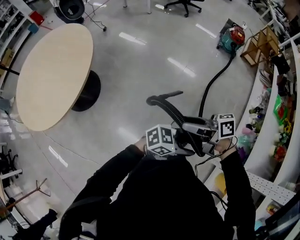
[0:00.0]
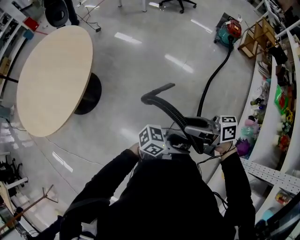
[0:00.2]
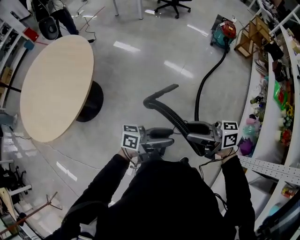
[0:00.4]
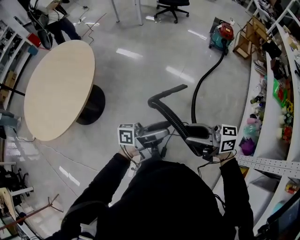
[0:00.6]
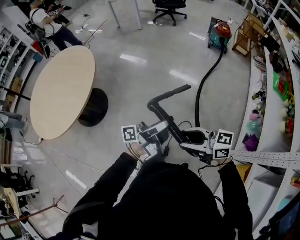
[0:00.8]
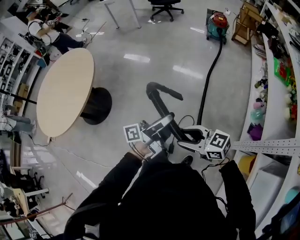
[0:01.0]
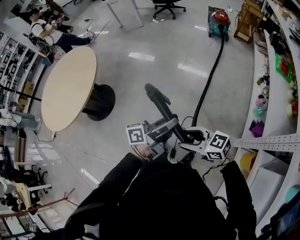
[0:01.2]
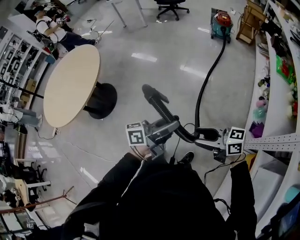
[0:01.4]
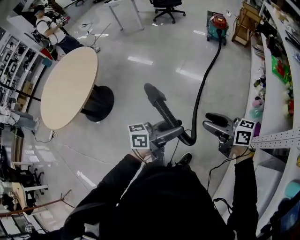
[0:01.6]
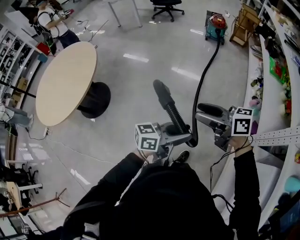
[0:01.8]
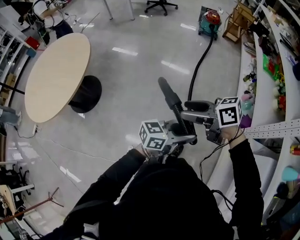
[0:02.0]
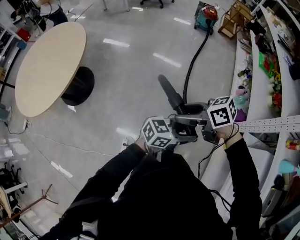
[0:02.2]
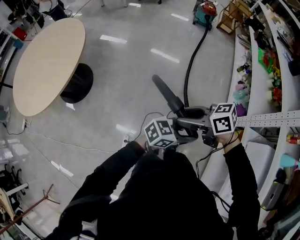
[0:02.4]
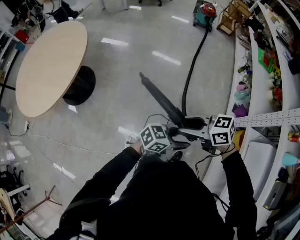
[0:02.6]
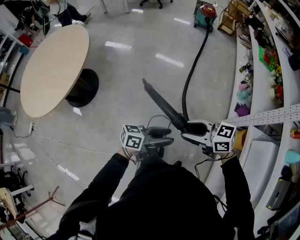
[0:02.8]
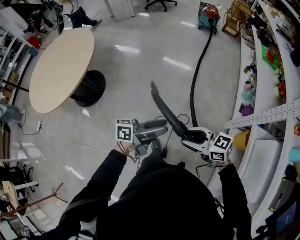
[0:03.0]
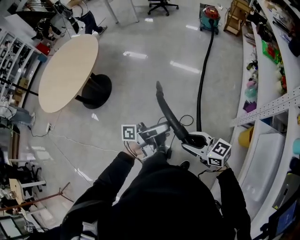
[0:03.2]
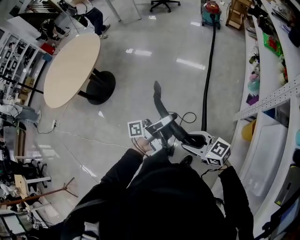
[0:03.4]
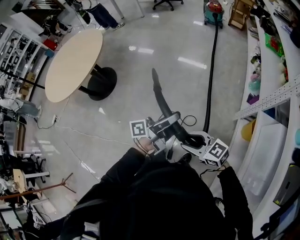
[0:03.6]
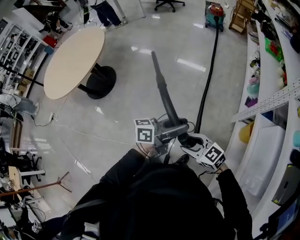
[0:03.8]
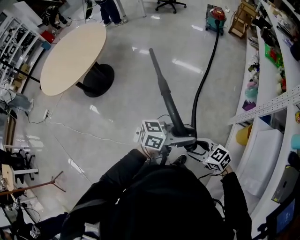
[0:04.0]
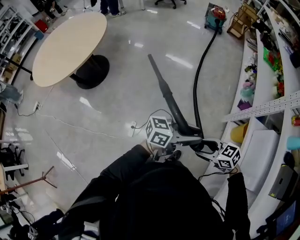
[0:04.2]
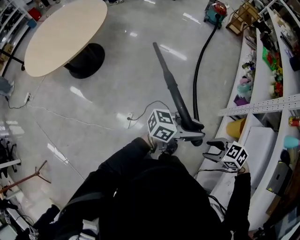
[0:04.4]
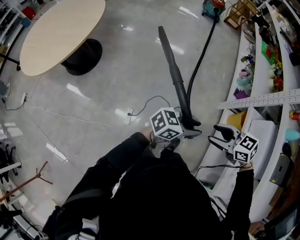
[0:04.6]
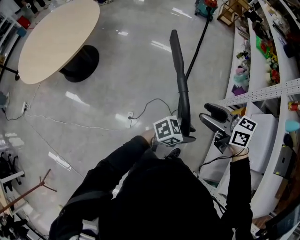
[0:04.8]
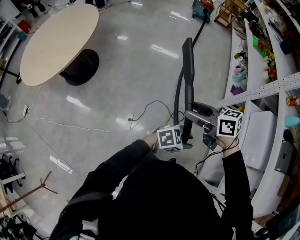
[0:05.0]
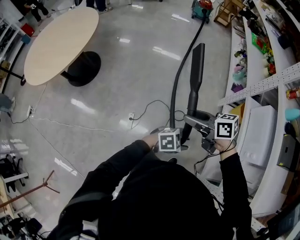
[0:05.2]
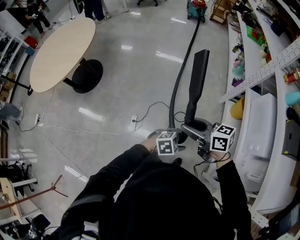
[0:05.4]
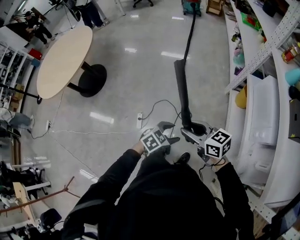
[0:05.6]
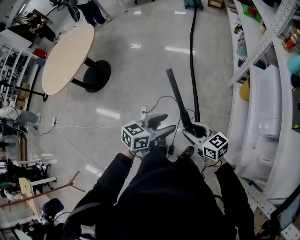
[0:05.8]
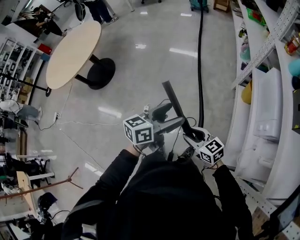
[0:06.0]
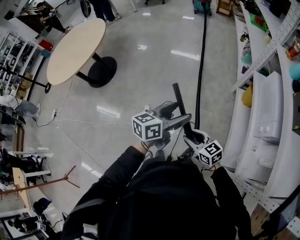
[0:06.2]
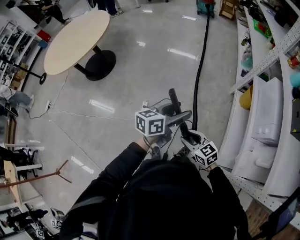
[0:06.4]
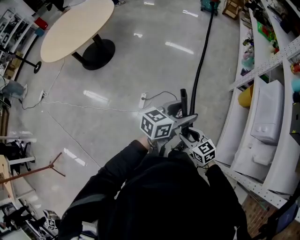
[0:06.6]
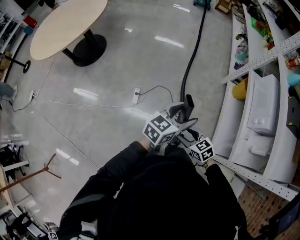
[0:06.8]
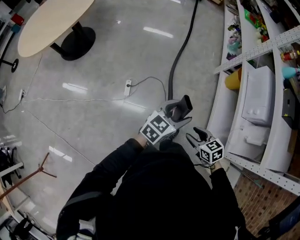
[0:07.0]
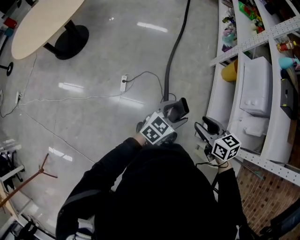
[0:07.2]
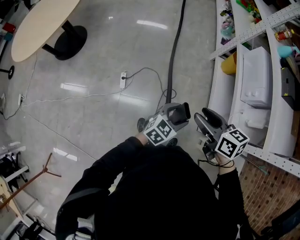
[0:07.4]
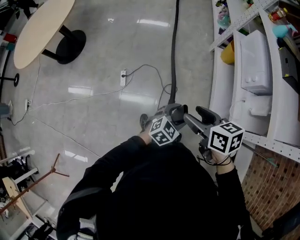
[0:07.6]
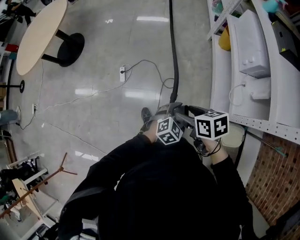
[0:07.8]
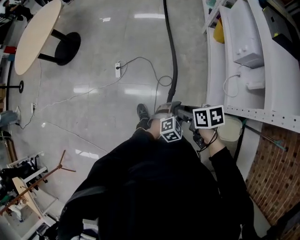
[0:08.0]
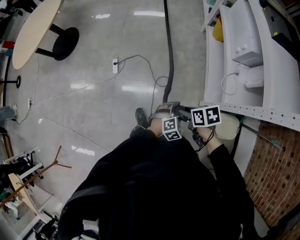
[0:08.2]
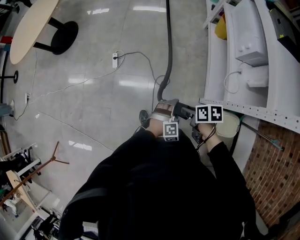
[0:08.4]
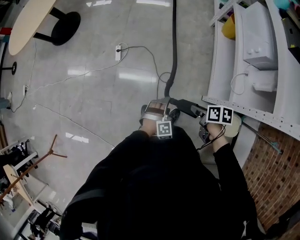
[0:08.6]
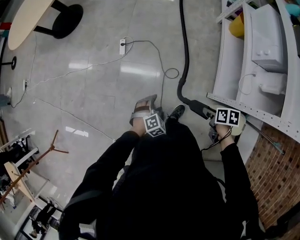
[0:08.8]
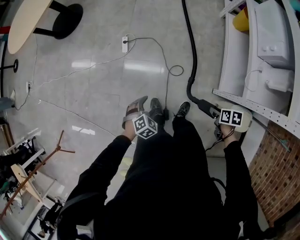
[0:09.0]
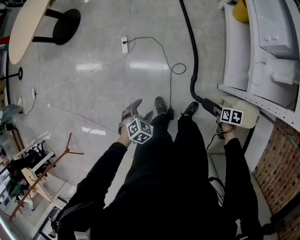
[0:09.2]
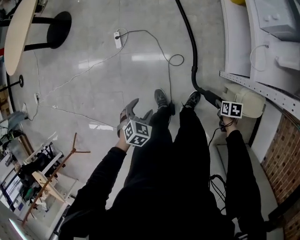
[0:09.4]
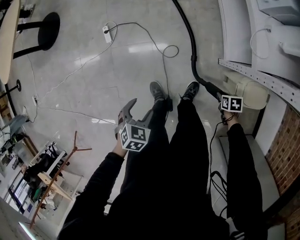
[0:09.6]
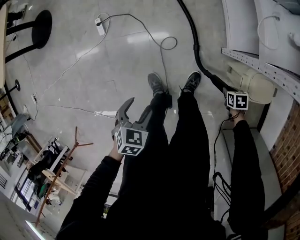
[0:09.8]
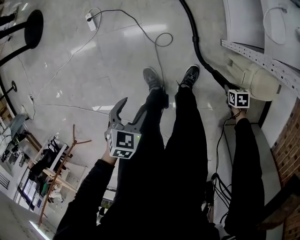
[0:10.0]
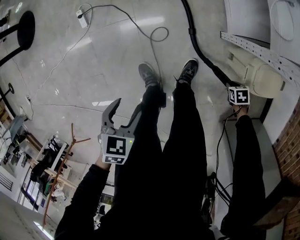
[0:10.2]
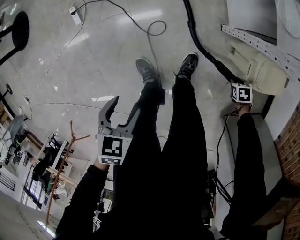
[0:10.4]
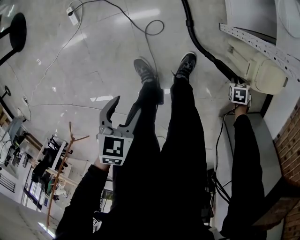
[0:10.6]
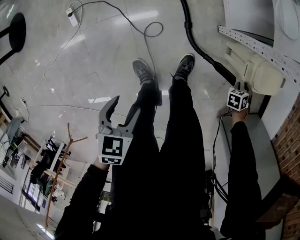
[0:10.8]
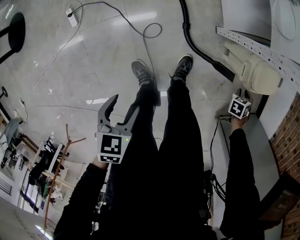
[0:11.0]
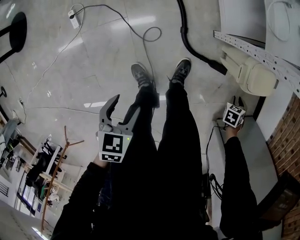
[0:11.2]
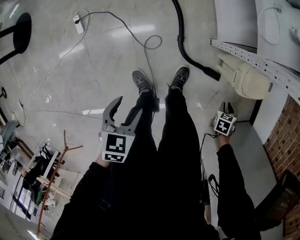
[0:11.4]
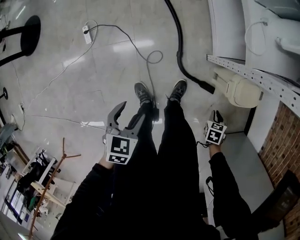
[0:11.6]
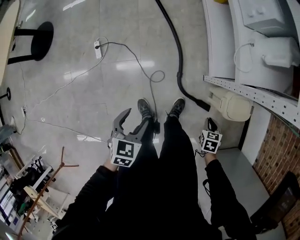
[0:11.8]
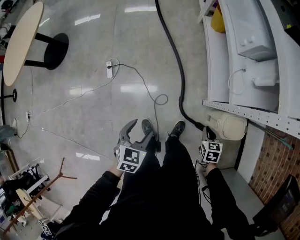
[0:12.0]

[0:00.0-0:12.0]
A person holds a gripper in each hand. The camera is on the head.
0:00.0 to 0:01.6: The left gripper shifts by roughly 20 cm, changes its angle by approximately 40 degrees, and opens, then closes once more, while the right gripper changes place by approximately 35 cm, and swivels about 30 degrees.
0:01.6 to 0:03.0: The right gripper moves roughly 30 cm, and swivels about 20 degrees; the left gripper shifts by approximately 20 cm.
0:03.0 to 0:04.4: The right gripper changes place by some 20 cm, and points its fingers about 40 degrees further downward. The left gripper ends up about 20 cm from where it was, and swivels approximately 30 degrees.
0:04.4 to 0:06.0: The right gripper moves roughly 15 cm upward and comes back, and tilts its fingers roughly 30 degrees upward. The left gripper travels downward and back again, approximately 15 cm each way, turns by roughly 30 degrees, and opens its fingers.
0:06.0 to 0:07.6: The left gripper shifts approximately 30 cm backward and downward, and swivels roughly 50 degrees. The right gripper heads backward and upward, covering about 20 cm, and changes its angle by approximately 30 degrees.
0:07.6 to 0:09.0: The right gripper is displaced downward by about 30 cm, points its fingers roughly 30 degrees further downward, and closes; the left gripper changes place by some 30 cm, and rotates roughly 30 degrees.
0:09.0 to 0:10.4: The right gripper shifts approximately 40 cm downward, and rotates approximately 20 degrees, while the left gripper ends up roughly 20 cm from where it was, and turns by approximately 20 degrees.
0:10.4 to 0:12.0: The right gripper heads upward, covering approximately 40 cm, and swivels roughly 40 degrees. The left gripper is displaced upward by some 20 cm, and turns by roughly 20 degrees.

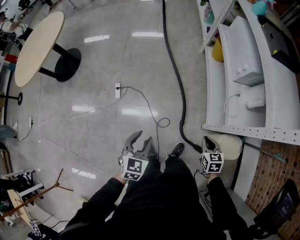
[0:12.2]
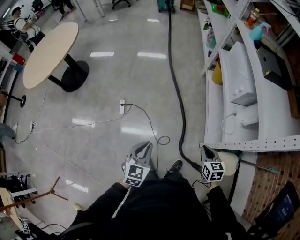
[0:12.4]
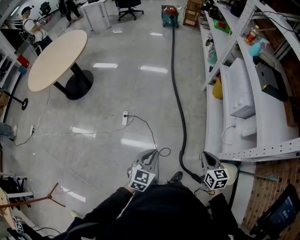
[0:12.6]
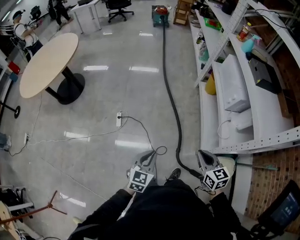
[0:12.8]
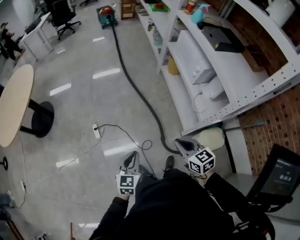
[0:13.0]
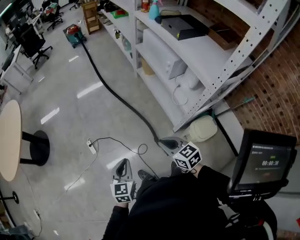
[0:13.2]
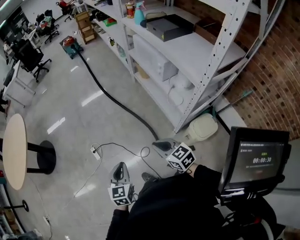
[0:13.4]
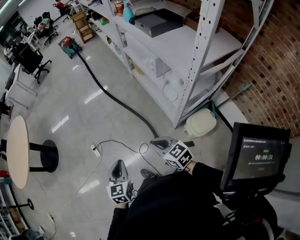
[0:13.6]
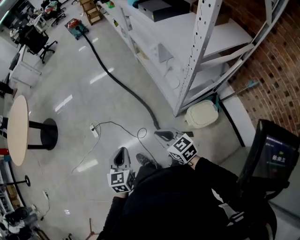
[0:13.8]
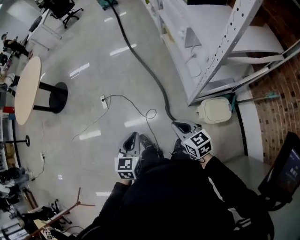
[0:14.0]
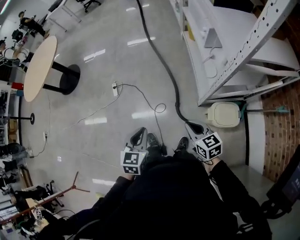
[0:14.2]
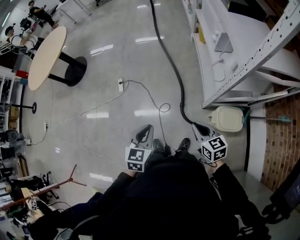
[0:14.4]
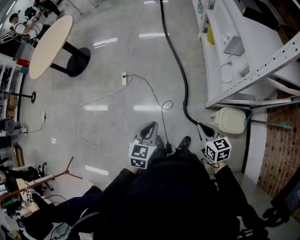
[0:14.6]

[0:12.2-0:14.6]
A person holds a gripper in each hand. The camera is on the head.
0:12.2 to 0:13.4: The left gripper moves upward, approximately 10 cm, and closes. Meanwhile the right gripper moves upward and to the left, approximately 20 cm, and turns by approximately 20 degrees.
0:13.4 to 0:14.6: The left gripper moves backward and to the right, some 15 cm. Meanwhile the right gripper goes about 20 cm backward, to the right and downward.

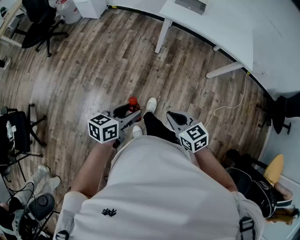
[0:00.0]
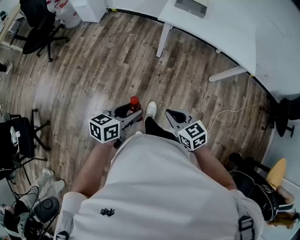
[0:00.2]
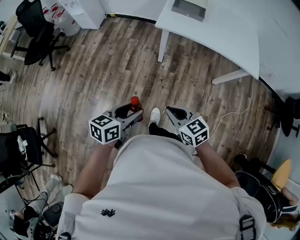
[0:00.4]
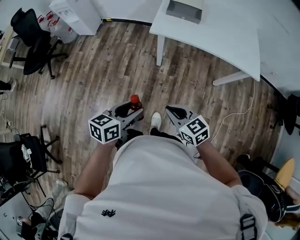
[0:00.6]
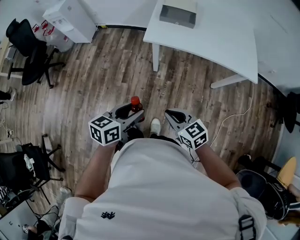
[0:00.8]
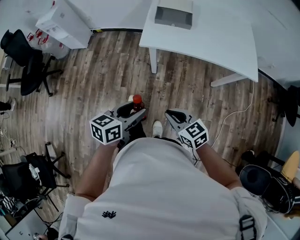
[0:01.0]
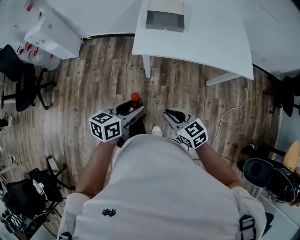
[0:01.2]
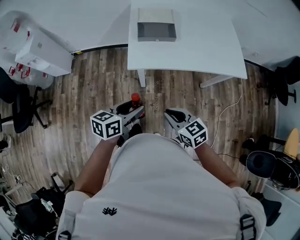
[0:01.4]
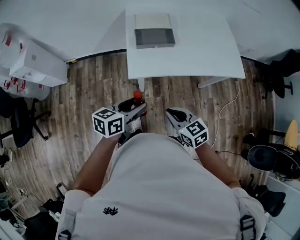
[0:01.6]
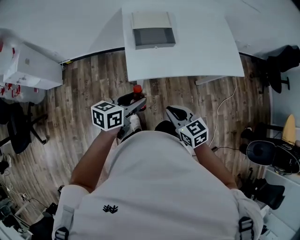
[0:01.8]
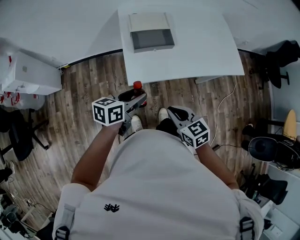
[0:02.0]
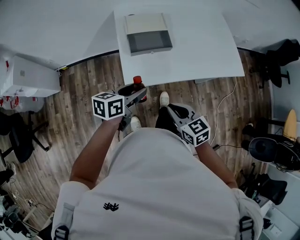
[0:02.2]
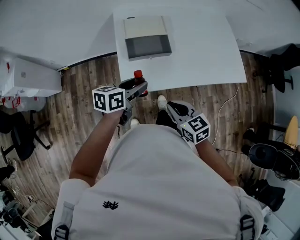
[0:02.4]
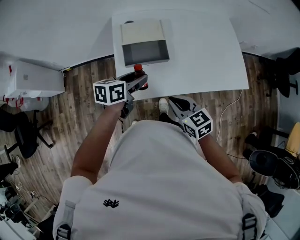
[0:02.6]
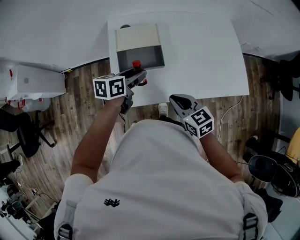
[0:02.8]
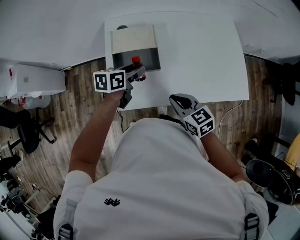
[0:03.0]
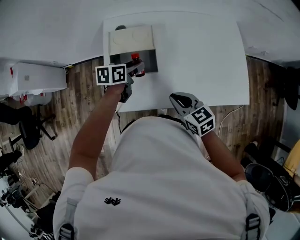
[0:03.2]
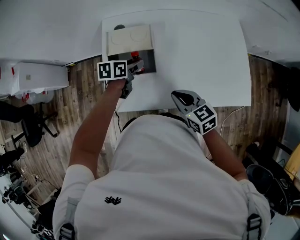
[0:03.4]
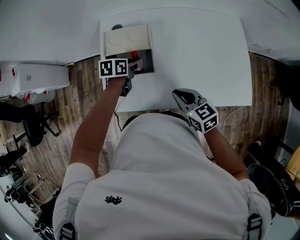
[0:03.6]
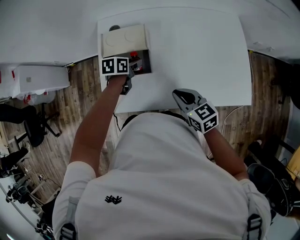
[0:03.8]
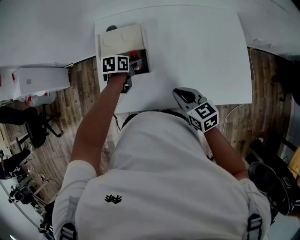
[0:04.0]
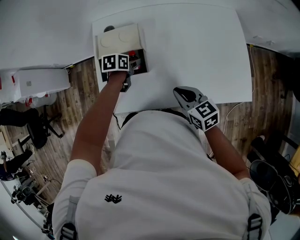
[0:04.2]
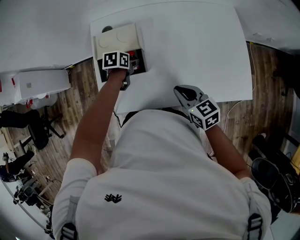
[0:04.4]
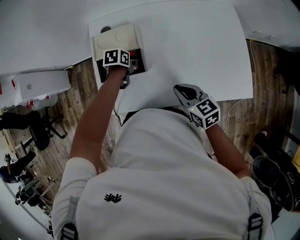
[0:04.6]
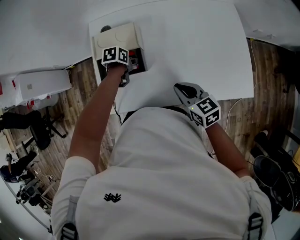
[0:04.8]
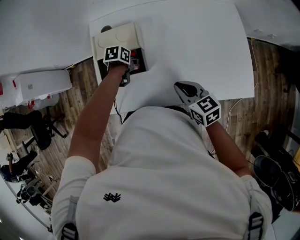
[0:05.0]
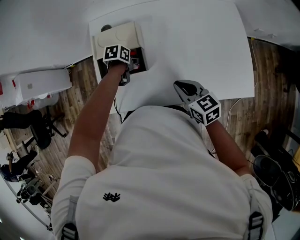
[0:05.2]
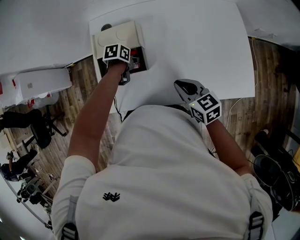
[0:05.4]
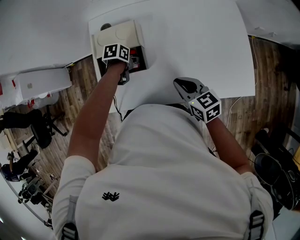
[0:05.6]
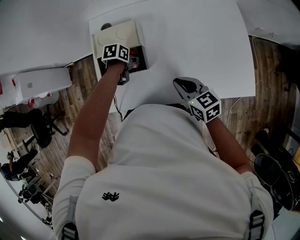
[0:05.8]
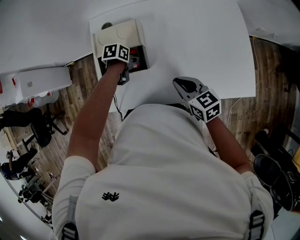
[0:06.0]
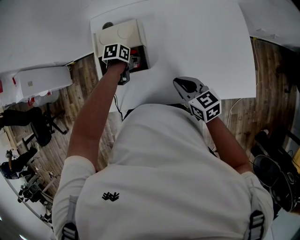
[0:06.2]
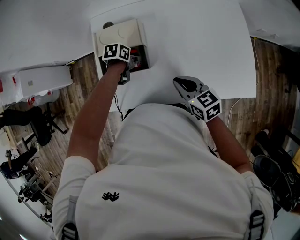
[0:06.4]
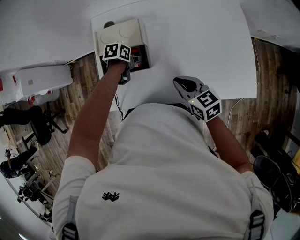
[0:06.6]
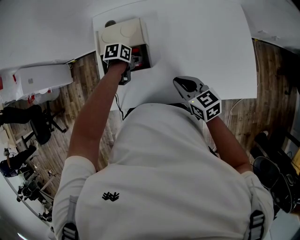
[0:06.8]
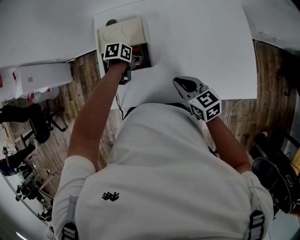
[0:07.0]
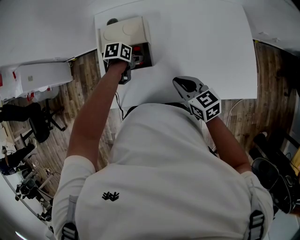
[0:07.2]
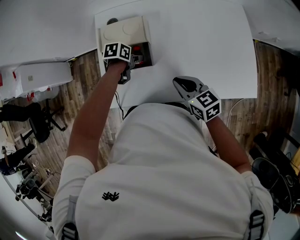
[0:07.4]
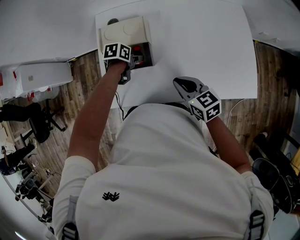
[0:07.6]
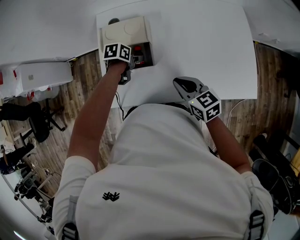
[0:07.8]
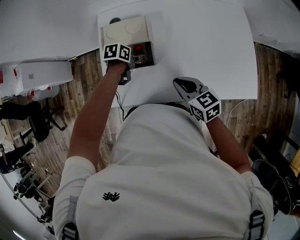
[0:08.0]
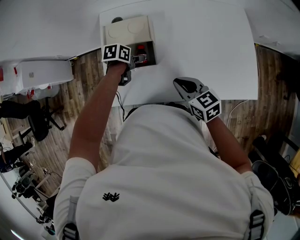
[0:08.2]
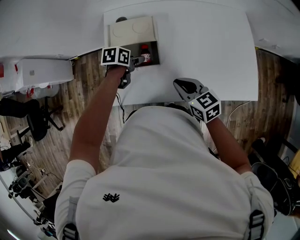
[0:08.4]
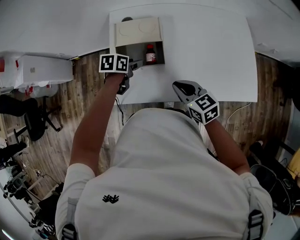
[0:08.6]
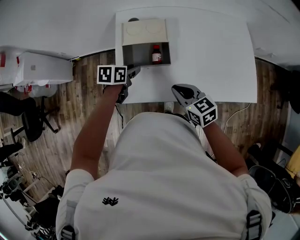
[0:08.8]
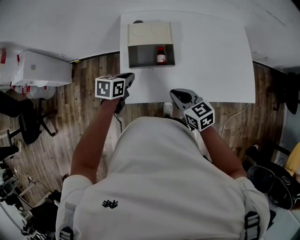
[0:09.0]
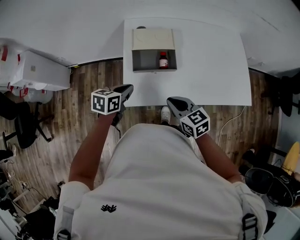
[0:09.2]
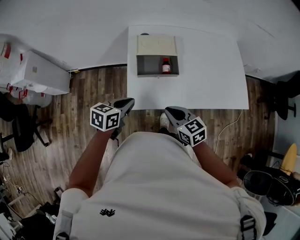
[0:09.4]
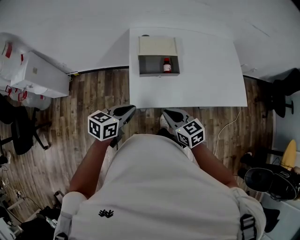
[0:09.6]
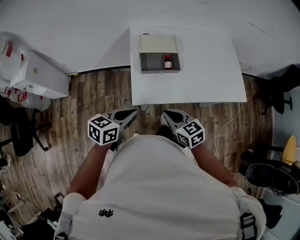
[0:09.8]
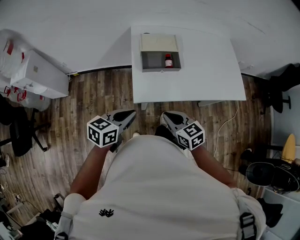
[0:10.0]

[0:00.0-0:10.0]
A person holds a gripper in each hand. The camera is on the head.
0:00.0 to 0:01.4: The grippers both shift forward by approximately 35 cm.
0:01.4 to 0:02.8: The two grippers go about 30 cm forward.
0:02.8 to 0:04.2: The left gripper heads downward and forward, covering approximately 20 cm, and swivels roughly 30 degrees, while the right gripper is displaced to the right and forward by approximately 10 cm.
0:04.2 to 0:07.2: The grippers stay close to where they were, moving slightly.
0:07.2 to 0:08.6: The right gripper changes place by roughly 5 cm. The left gripper shifts about 5 cm upward.
0:08.6 to 0:10.0: The right gripper goes some 20 cm backward and to the left; the left gripper heads backward, upward and to the left, covering some 30 cm, swivels roughly 30 degrees, and closes.
